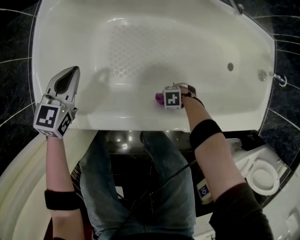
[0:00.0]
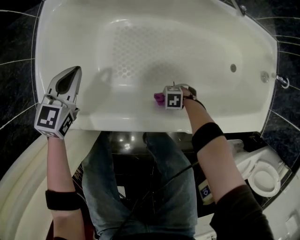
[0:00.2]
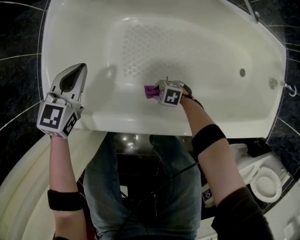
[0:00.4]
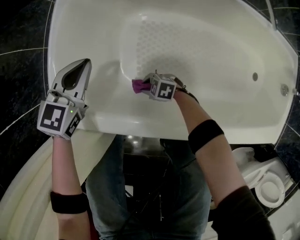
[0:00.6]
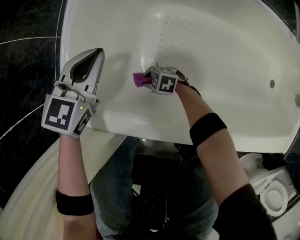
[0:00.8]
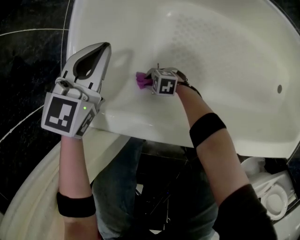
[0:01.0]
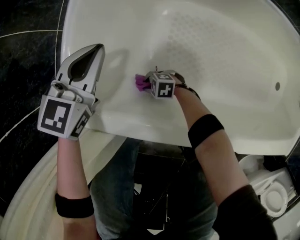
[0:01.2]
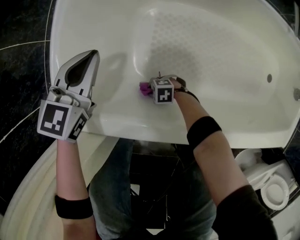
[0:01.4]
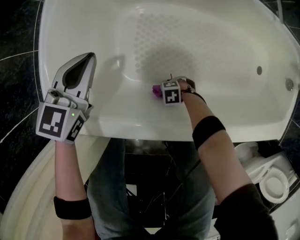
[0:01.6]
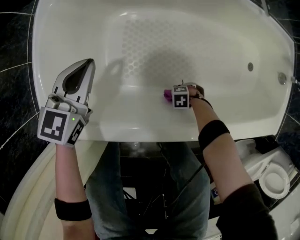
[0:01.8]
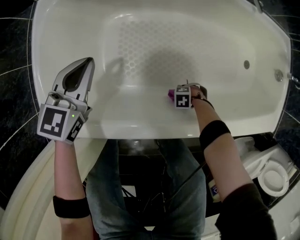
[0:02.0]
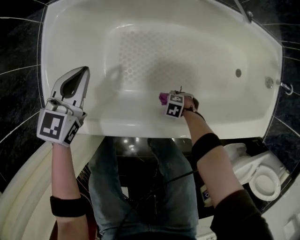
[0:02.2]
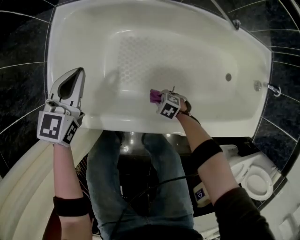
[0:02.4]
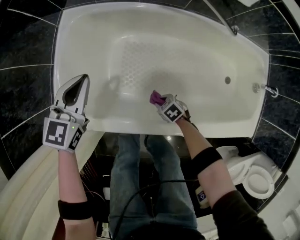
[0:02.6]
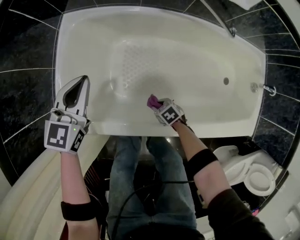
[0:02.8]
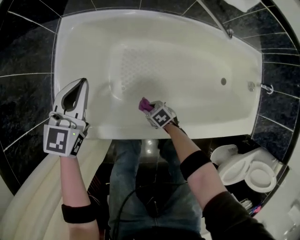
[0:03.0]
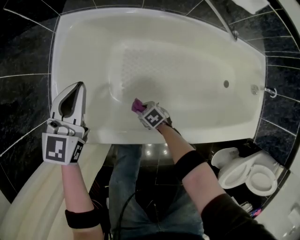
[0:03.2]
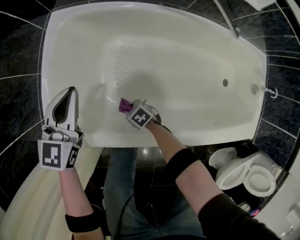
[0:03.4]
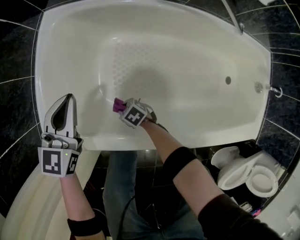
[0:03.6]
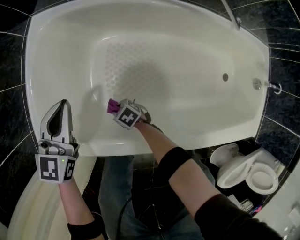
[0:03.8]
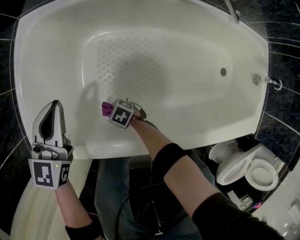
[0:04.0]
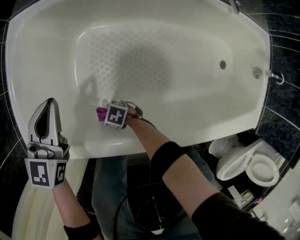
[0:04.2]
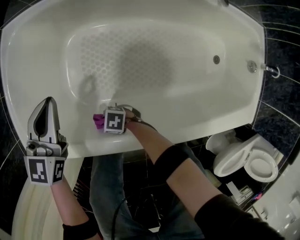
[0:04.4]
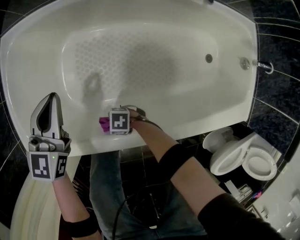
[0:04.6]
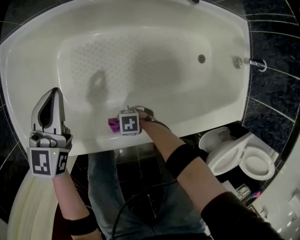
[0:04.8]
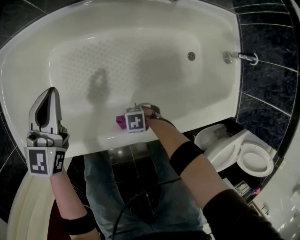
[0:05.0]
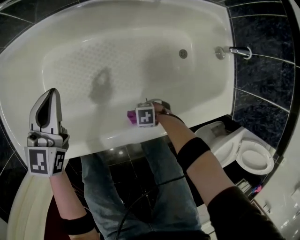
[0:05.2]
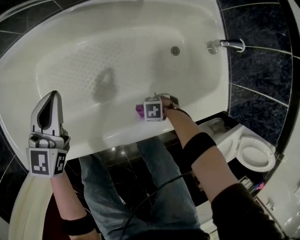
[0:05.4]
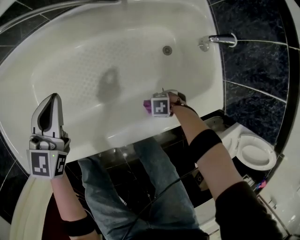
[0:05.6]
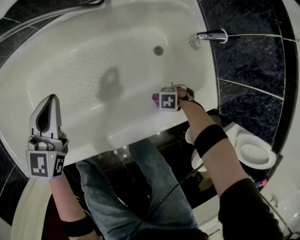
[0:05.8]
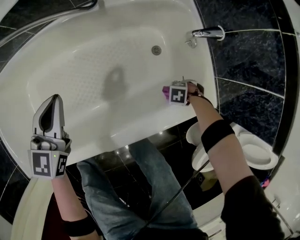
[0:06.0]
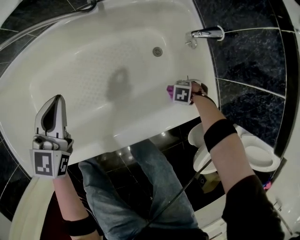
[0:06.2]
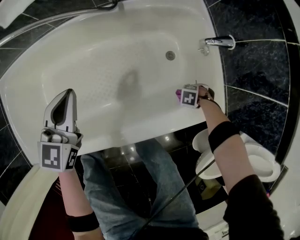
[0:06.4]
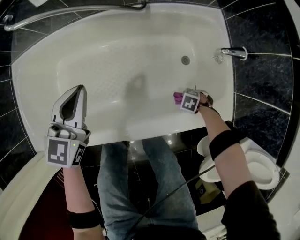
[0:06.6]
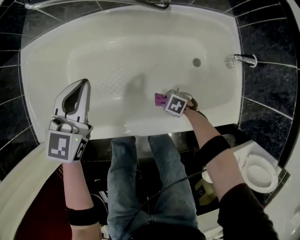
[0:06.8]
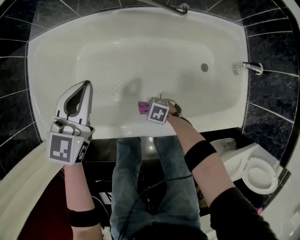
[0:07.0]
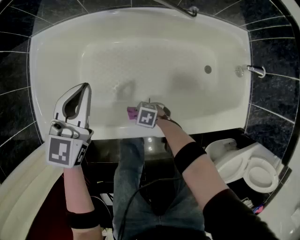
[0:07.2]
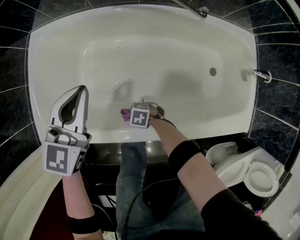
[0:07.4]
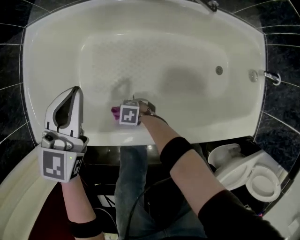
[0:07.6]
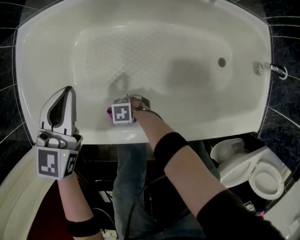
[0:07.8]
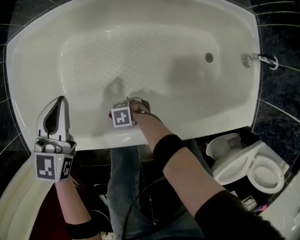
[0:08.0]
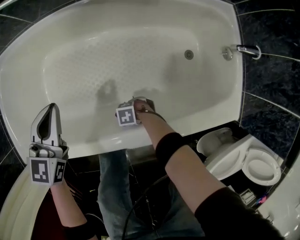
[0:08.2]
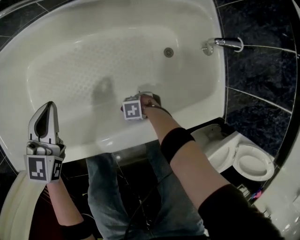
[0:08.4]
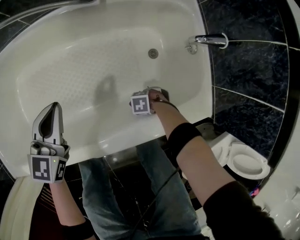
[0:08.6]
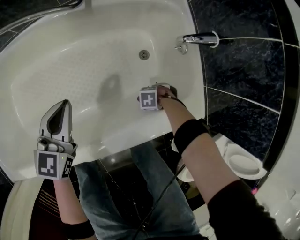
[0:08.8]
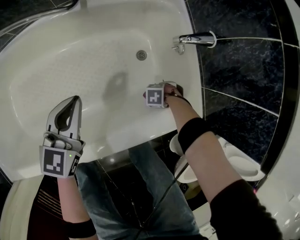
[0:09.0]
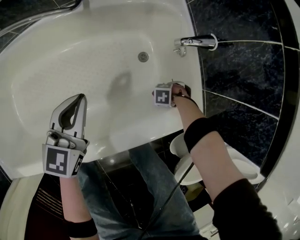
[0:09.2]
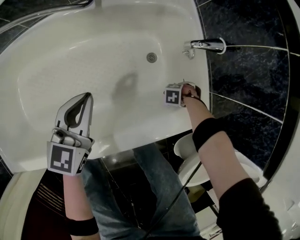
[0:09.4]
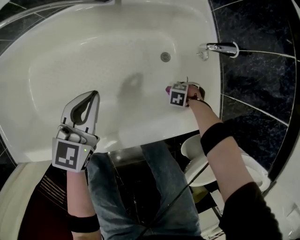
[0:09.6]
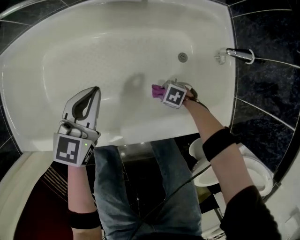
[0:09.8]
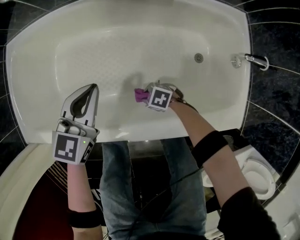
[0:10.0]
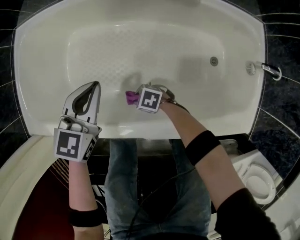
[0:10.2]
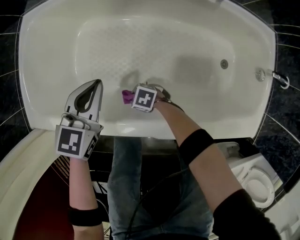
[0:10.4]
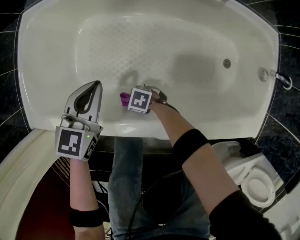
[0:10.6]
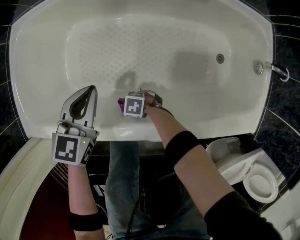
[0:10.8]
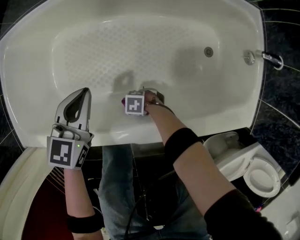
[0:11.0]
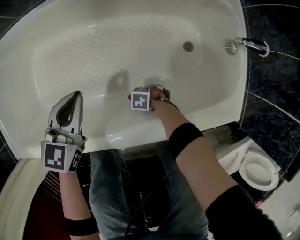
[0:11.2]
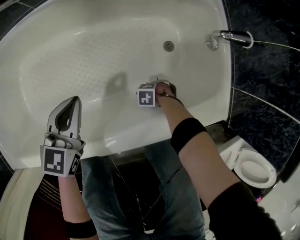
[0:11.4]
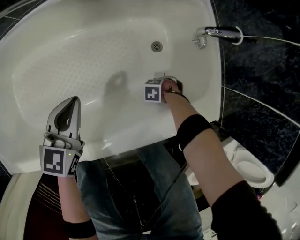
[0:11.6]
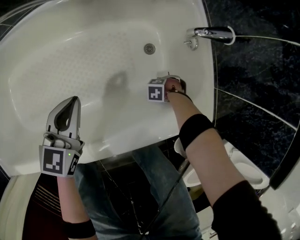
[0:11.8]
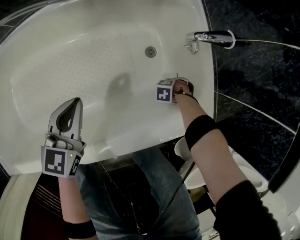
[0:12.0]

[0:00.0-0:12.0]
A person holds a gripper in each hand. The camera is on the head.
0:01.6 to 0:03.0: The grippers both shift upward by some 20 cm. The right gripper rotates around the line of its fingers by some 50 degrees, clockwise from behind.
0:03.0 to 0:04.4: The left gripper travels downward by roughly 15 cm, while the right gripper changes place by about 15 cm, and turns by roughly 40 degrees.
0:04.4 to 0:06.0: The pair of grippers is taken roughly 60 cm. The right gripper turns by some 40 degrees.
0:06.0 to 0:07.6: The right gripper travels upward and back again, some 5 cm each way, and swivels about 40 degrees; the left gripper goes upward and returns, some 10 cm each way.
0:07.6 to 0:09.0: Both grippers are carried about 60 cm. The right gripper changes its angle by some 30 degrees; the left gripper swivels roughly 20 degrees.
0:09.0 to 0:10.4: The right gripper ends up roughly 60 cm from where it was, and rotates roughly 40 degrees. The left gripper shifts by about 35 cm.
0:10.4 to 0:12.0: The left gripper changes place by approximately 35 cm, while the right gripper shifts by approximately 60 cm, and rotates some 40 degrees.

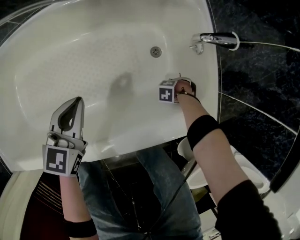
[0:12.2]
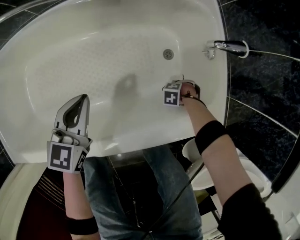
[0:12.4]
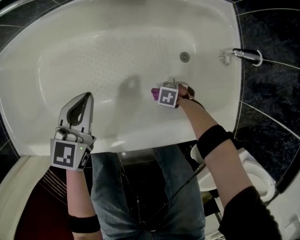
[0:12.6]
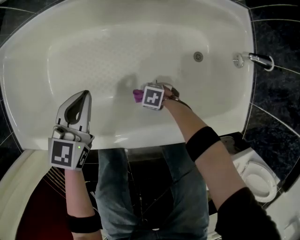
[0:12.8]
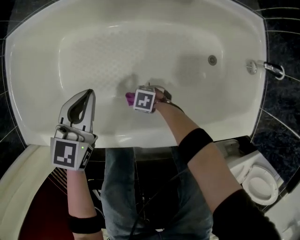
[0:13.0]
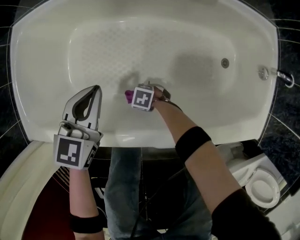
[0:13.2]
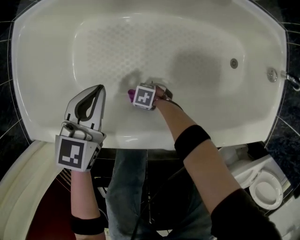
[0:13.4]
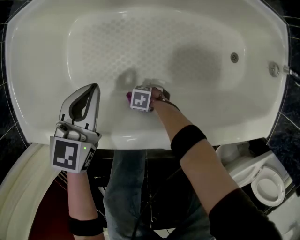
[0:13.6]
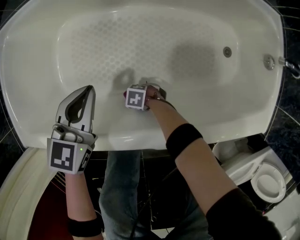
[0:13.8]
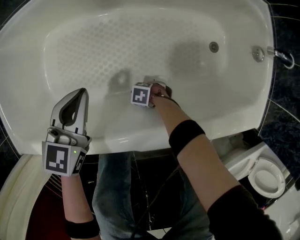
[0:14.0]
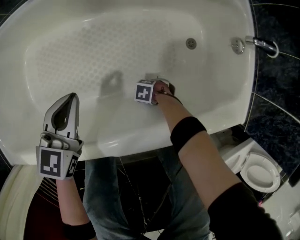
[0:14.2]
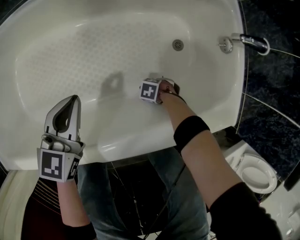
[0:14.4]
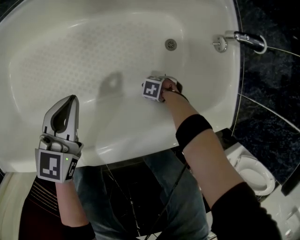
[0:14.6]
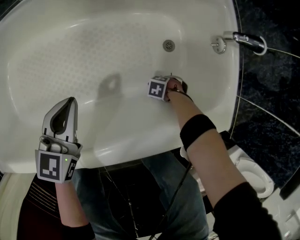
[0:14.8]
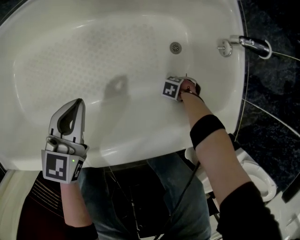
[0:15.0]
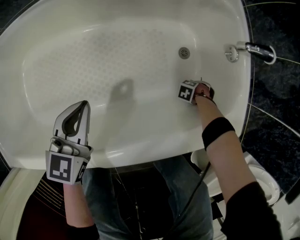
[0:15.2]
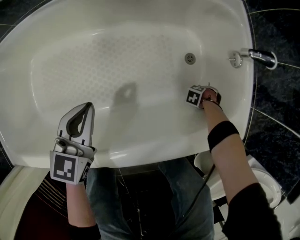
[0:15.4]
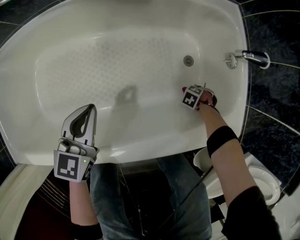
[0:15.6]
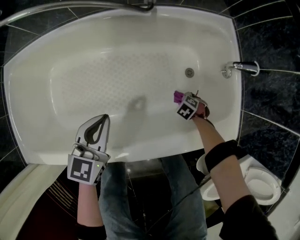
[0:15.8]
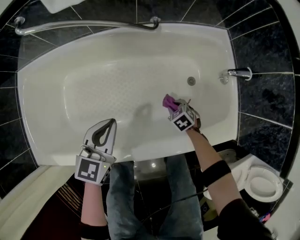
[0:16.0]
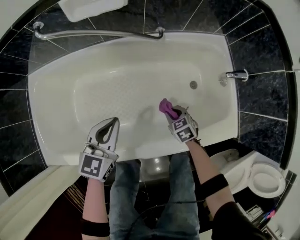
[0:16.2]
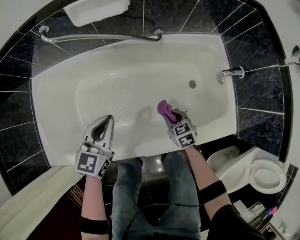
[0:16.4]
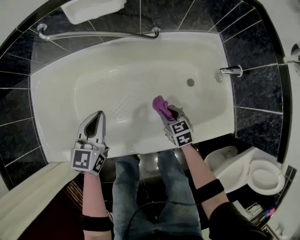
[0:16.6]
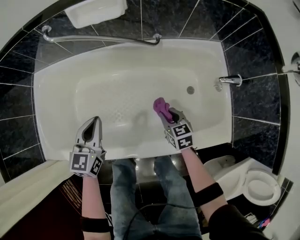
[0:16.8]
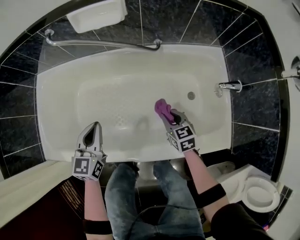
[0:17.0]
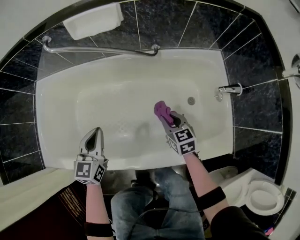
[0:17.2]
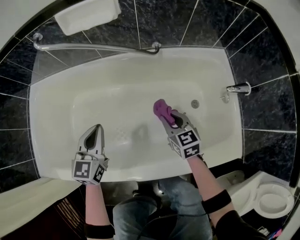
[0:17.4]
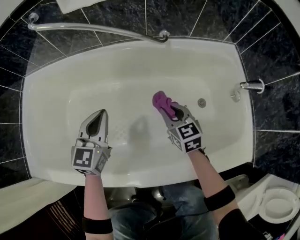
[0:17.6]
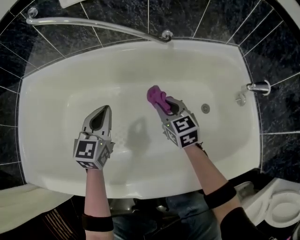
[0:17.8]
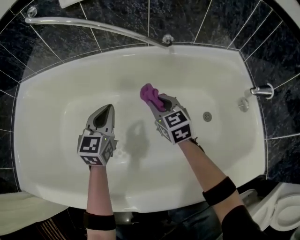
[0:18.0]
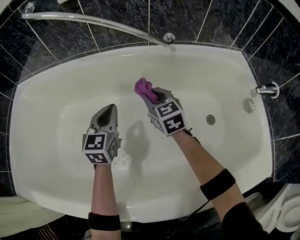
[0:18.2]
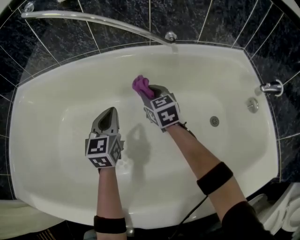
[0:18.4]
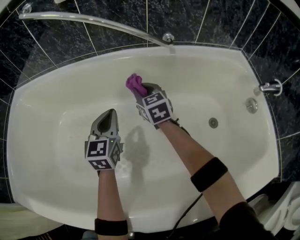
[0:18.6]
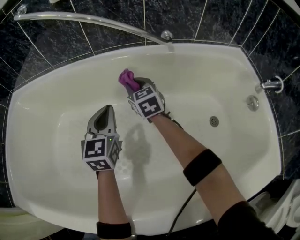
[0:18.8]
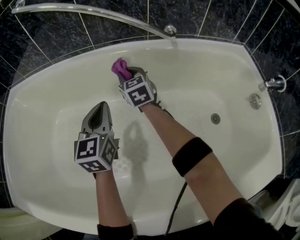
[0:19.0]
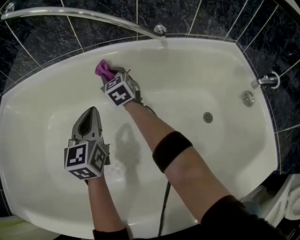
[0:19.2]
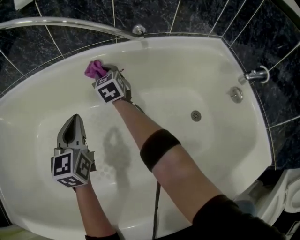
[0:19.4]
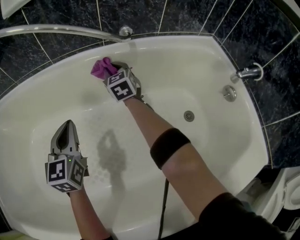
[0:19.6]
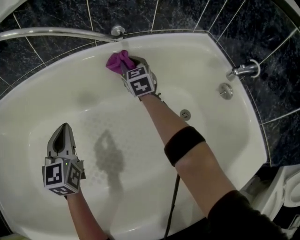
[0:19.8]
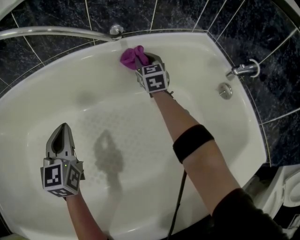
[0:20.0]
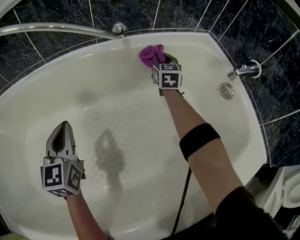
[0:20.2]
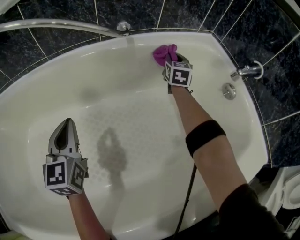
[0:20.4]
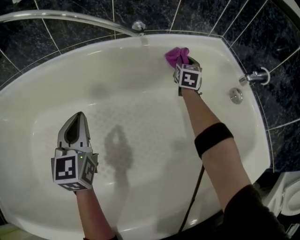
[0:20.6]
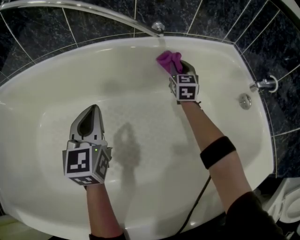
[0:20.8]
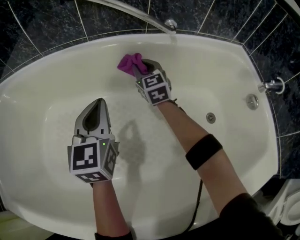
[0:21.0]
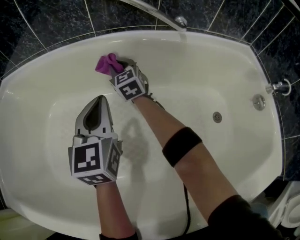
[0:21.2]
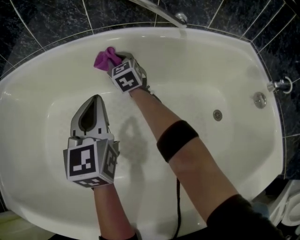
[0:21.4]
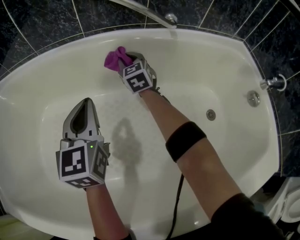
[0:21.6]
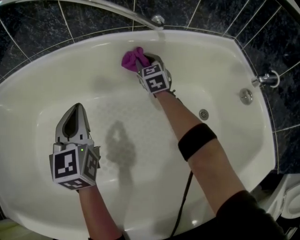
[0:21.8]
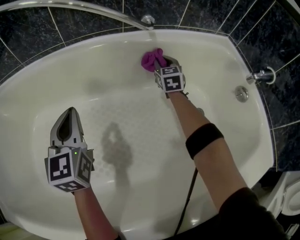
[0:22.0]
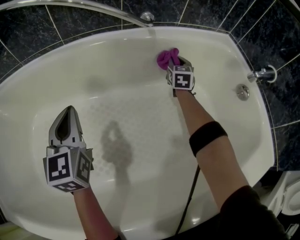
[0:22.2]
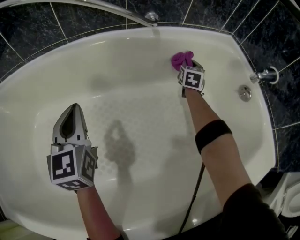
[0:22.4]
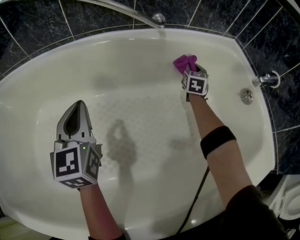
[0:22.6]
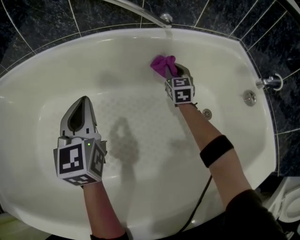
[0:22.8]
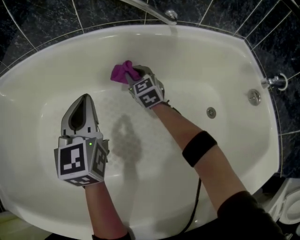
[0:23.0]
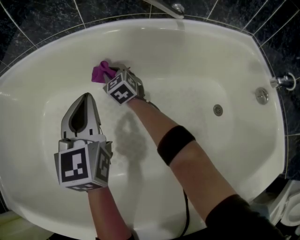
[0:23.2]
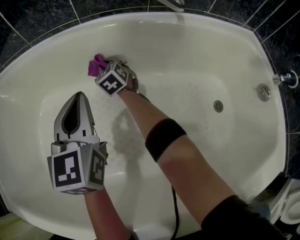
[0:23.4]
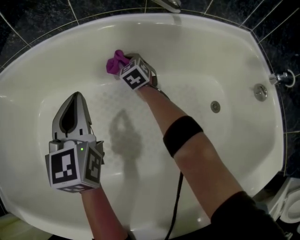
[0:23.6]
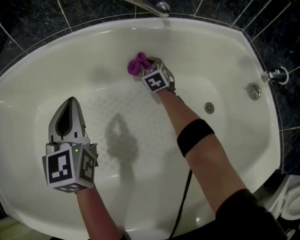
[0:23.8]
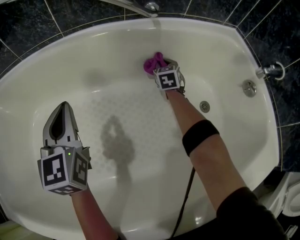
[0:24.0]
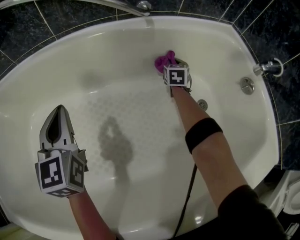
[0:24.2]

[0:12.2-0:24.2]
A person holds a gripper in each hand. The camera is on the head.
0:12.2 to 0:13.8: The right gripper moves about 60 cm, and rotates roughly 30 degrees; the left gripper changes place by roughly 30 cm.
0:13.8 to 0:15.2: The right gripper ends up approximately 60 cm from where it was, and changes its angle by roughly 40 degrees. The left gripper moves about 25 cm.
0:15.2 to 0:16.6: The left gripper travels upward by about 25 cm. Meanwhile the right gripper shifts some 40 cm upward, and rotates approximately 80 degrees.
0:16.6 to 0:18.2: The right gripper travels forward and downward by roughly 25 cm, and rotates roughly 30 degrees. Meanwhile the left gripper is displaced downward and forward by approximately 35 cm.
0:18.2 to 0:19.8: The right gripper shifts roughly 20 cm forward and to the right, and rotates some 20 degrees.
0:19.8 to 0:21.2: The right gripper changes place by approximately 30 cm.
0:21.2 to 0:22.6: The right gripper moves some 50 cm, and swivels approximately 50 degrees.
0:22.6 to 0:24.2: The right gripper is displaced downward by roughly 5 cm.
